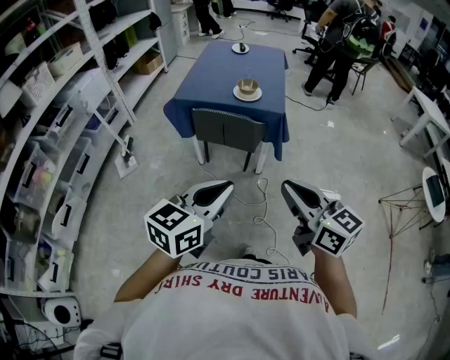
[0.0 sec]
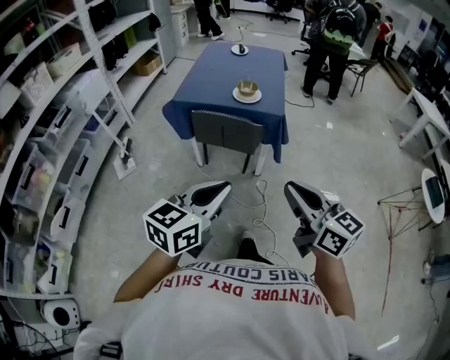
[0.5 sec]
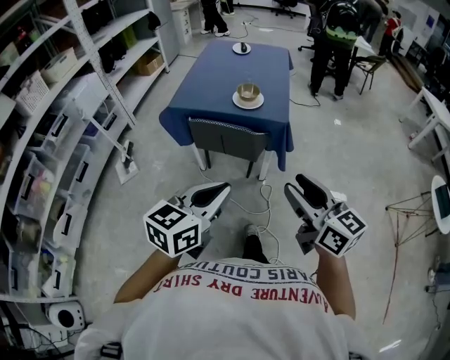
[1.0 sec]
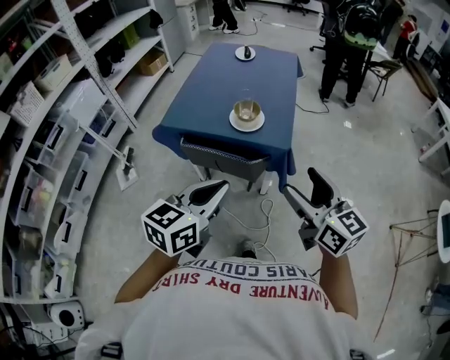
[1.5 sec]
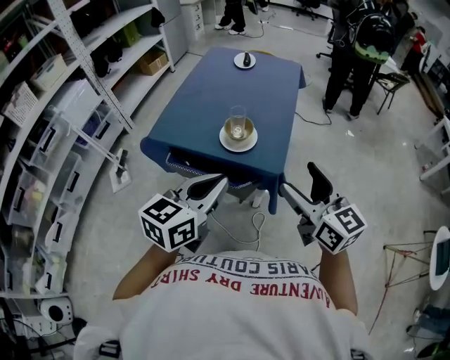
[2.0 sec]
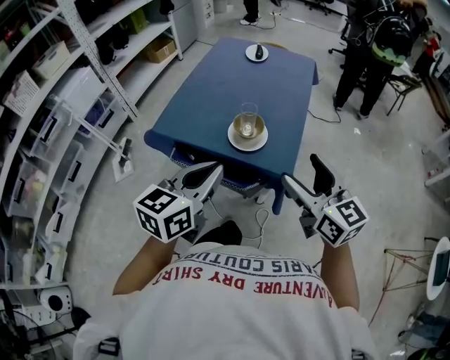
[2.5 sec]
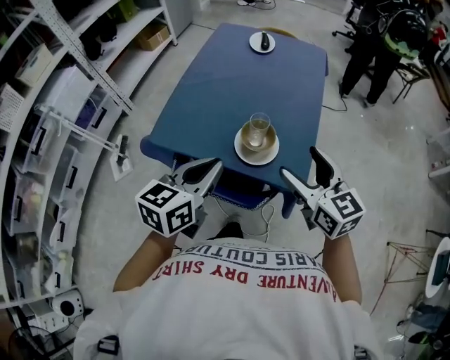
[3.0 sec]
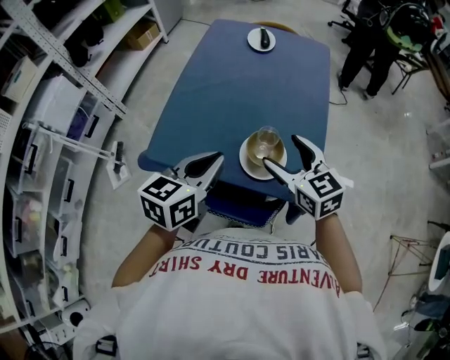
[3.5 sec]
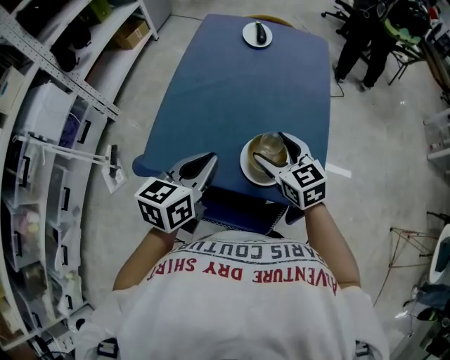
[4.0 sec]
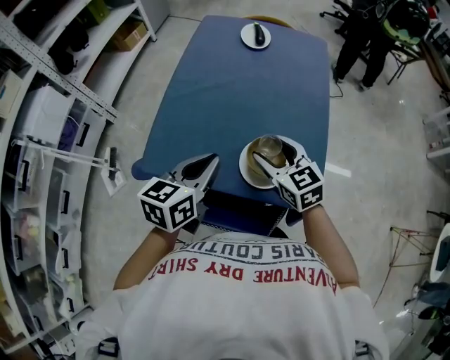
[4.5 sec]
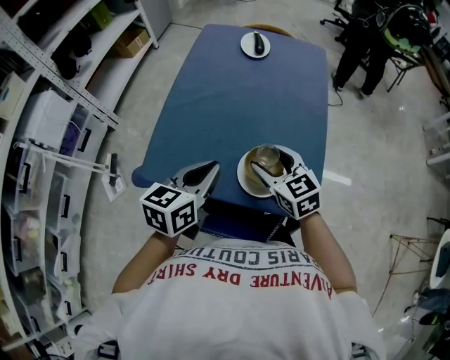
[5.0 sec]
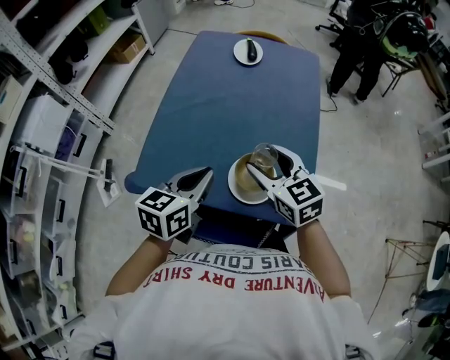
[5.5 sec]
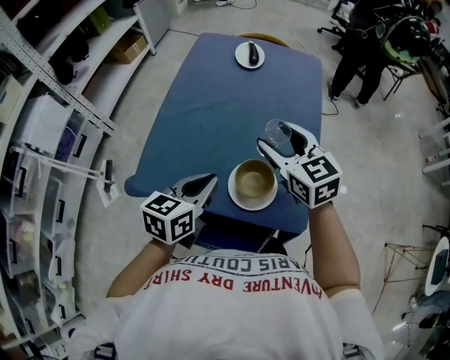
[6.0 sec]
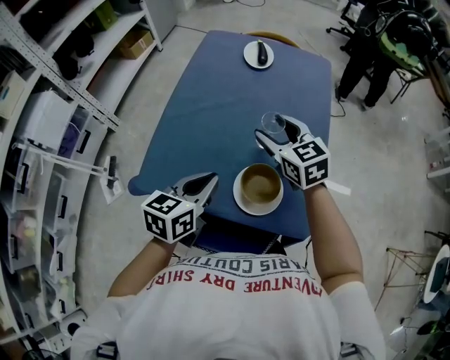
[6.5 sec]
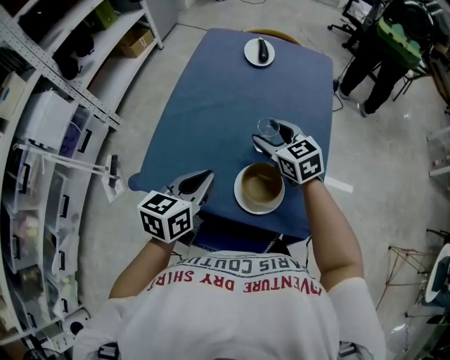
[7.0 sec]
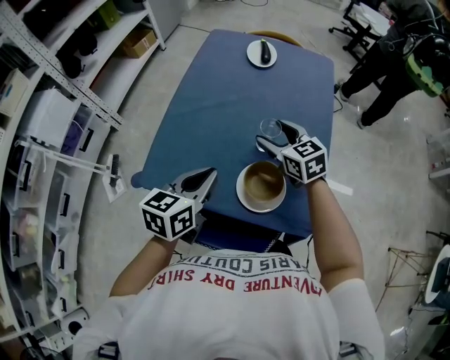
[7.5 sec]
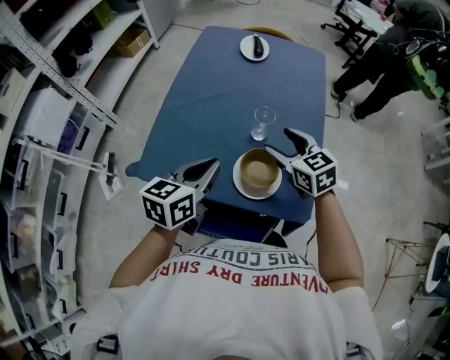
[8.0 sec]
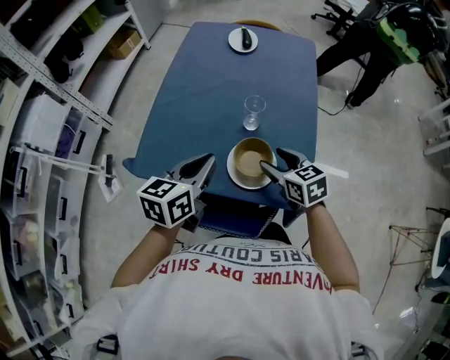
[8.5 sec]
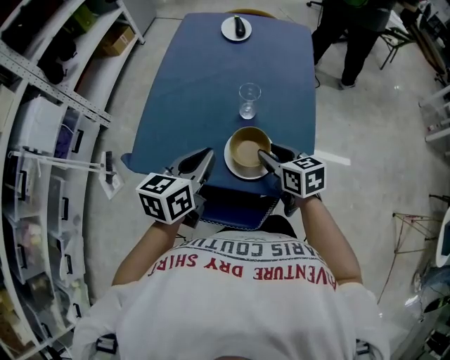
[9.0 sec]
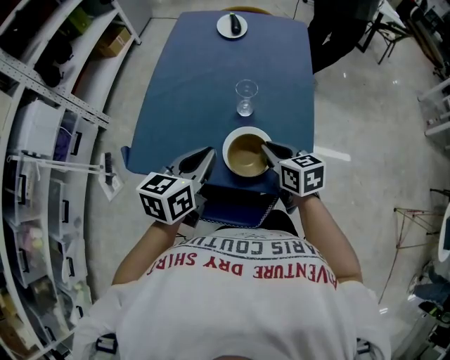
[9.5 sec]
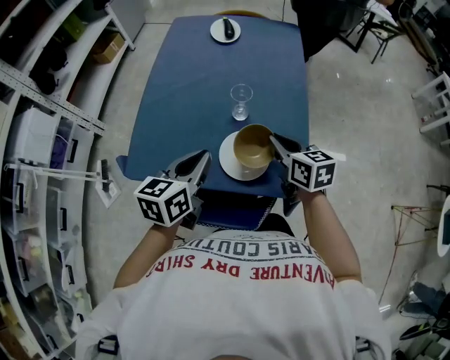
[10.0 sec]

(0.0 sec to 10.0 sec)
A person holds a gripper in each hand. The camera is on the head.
0.0 sec - 2.0 sec: Both grippers travel together forward, approximately 35 cm. The right gripper opens its fingers.
2.0 sec - 4.0 sec: The right gripper moves forward, downward and to the left, roughly 35 cm, and rotates approximately 20 degrees, while the left gripper heads forward, to the left and downward, covering about 30 cm.
4.0 sec - 6.0 sec: The right gripper travels upward and forward by roughly 10 cm.
6.0 sec - 8.0 sec: The right gripper shifts some 10 cm downward.
8.0 sec - 10.0 sec: The right gripper moves backward, some 5 cm, swivels roughly 30 degrees, and closes up.

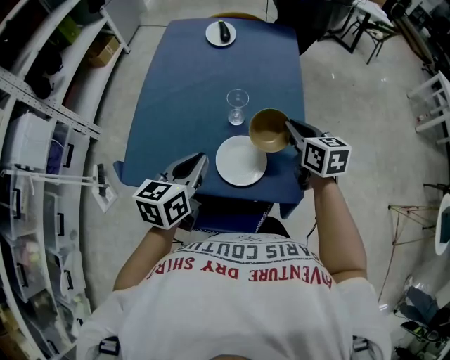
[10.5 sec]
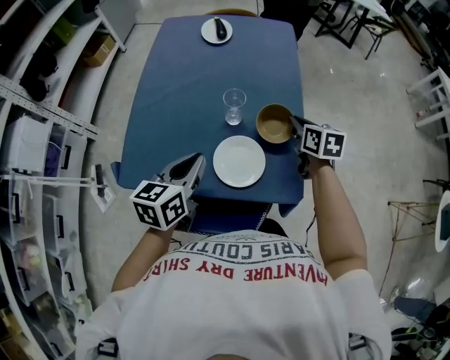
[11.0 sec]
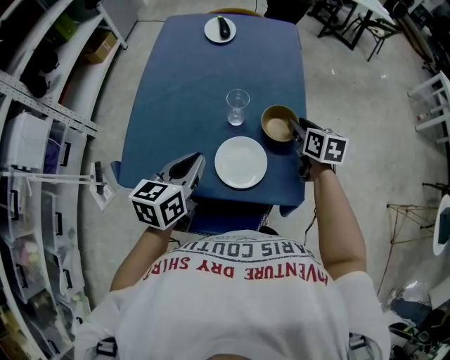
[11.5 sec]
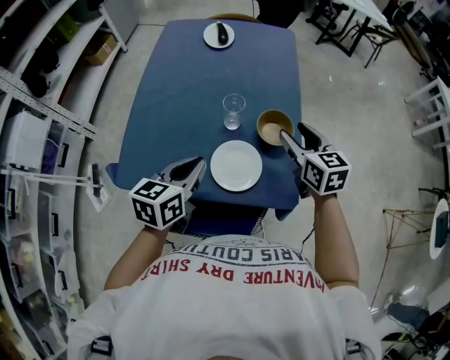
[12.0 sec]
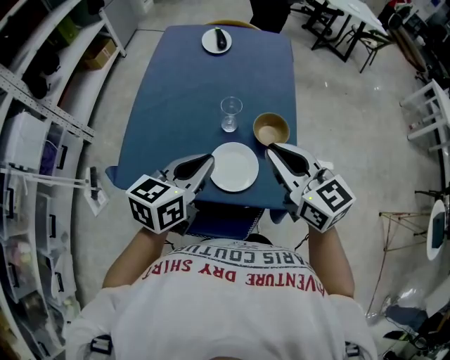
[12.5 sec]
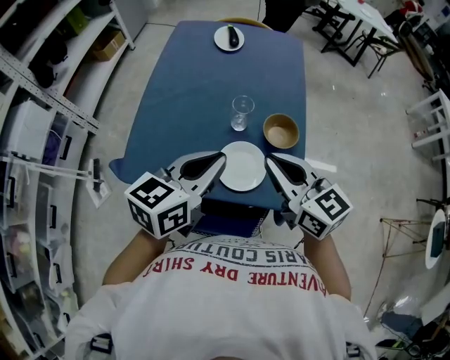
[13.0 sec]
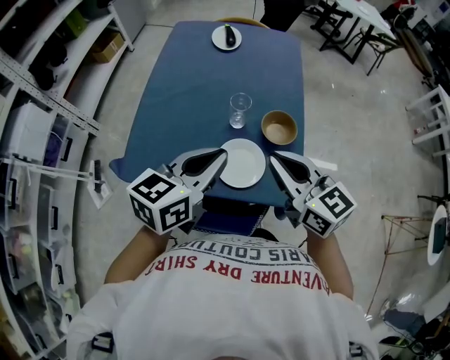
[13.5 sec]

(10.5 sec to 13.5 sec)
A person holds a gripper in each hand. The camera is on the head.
10.5 sec - 12.0 sec: The right gripper opens up.
12.0 sec - 13.5 sec: The right gripper is displaced backward, upward and to the left by roughly 15 cm, turns by some 20 degrees, and closes its fingers; the left gripper is displaced upward by approximately 10 cm.

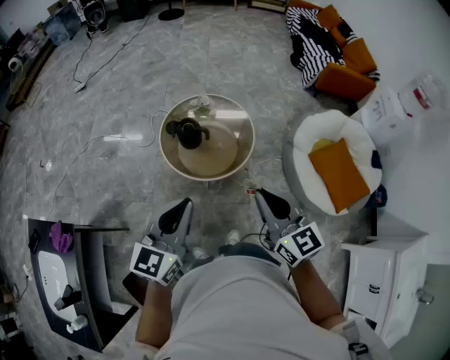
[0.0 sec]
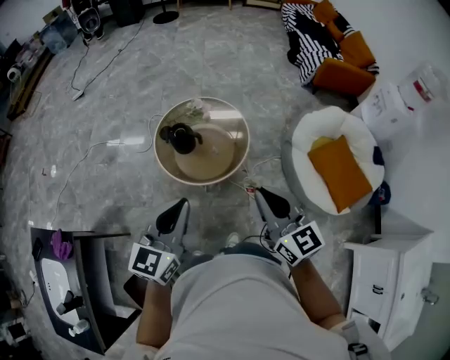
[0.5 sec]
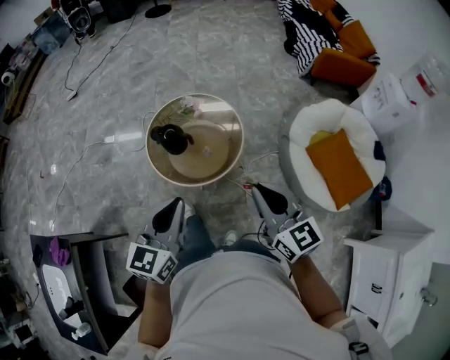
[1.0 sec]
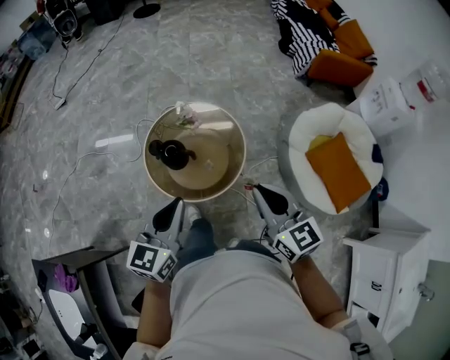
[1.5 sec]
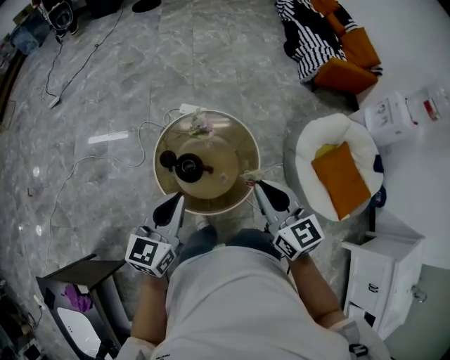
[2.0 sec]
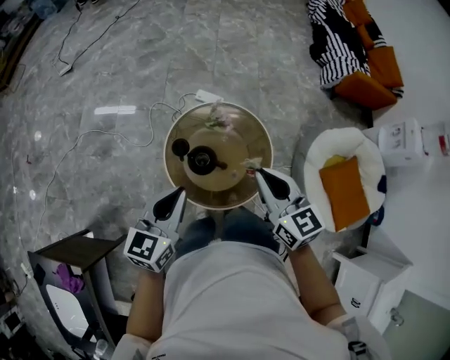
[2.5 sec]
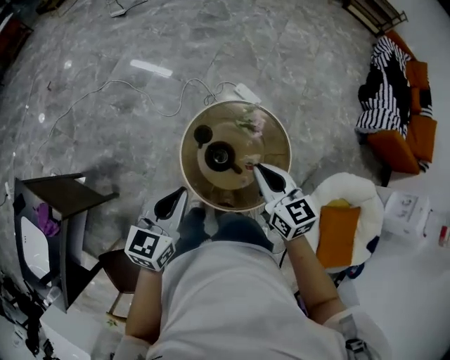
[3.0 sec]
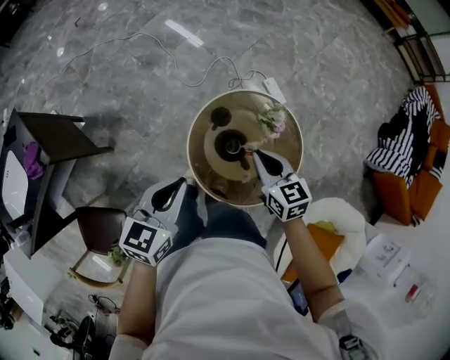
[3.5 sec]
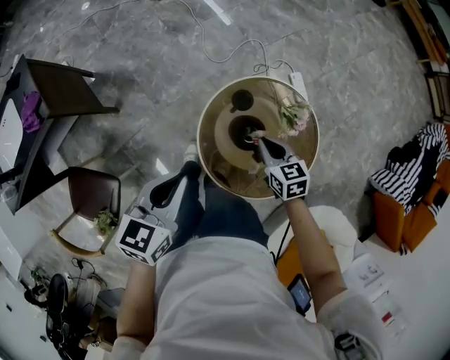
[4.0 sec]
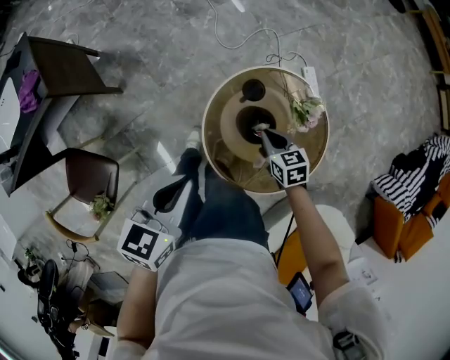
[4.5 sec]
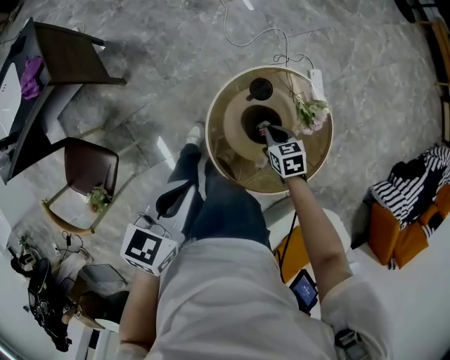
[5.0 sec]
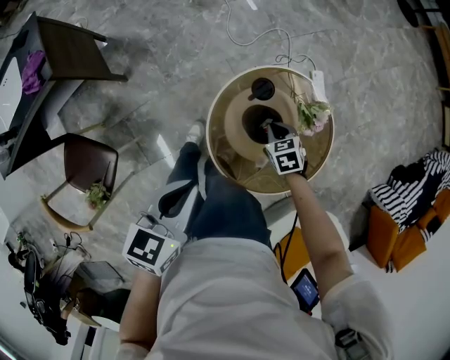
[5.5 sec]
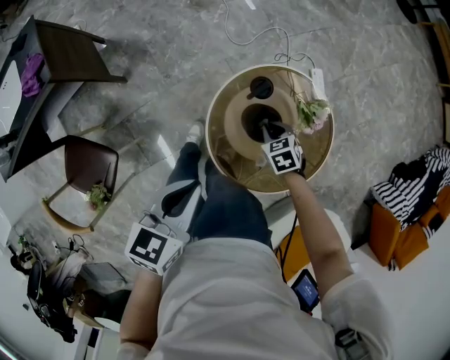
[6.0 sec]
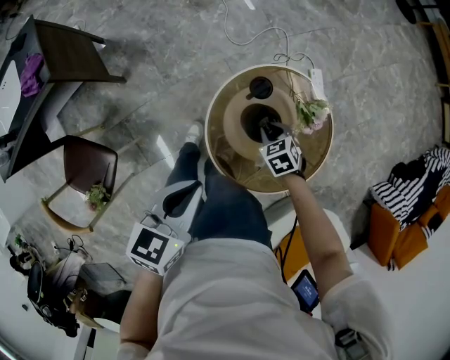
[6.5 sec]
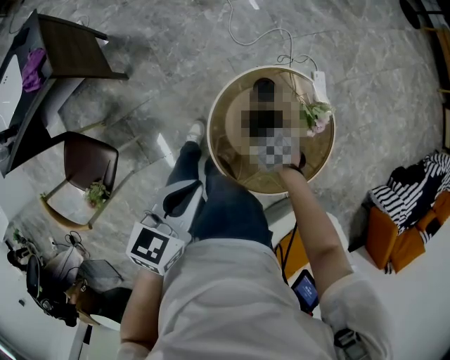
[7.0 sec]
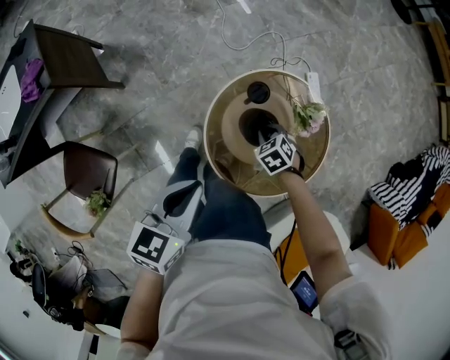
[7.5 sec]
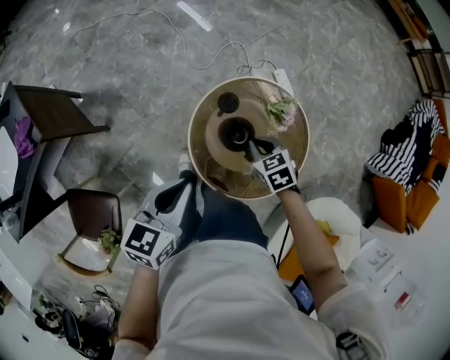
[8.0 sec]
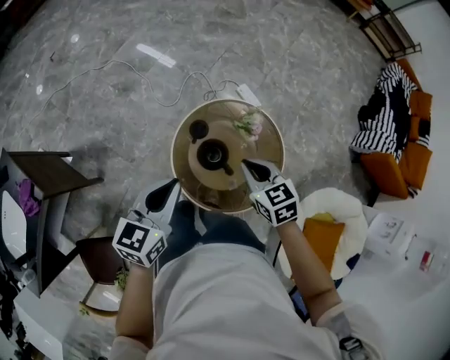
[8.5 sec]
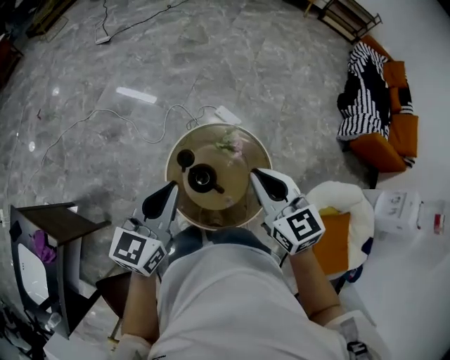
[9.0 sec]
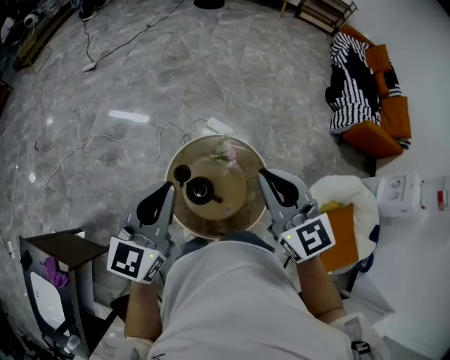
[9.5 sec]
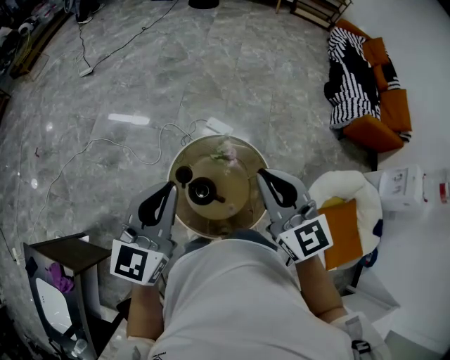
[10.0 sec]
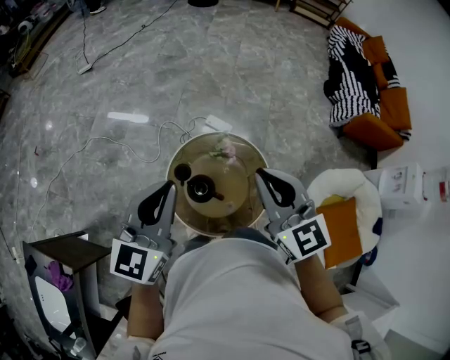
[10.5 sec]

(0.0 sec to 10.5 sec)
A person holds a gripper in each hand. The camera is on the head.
0.0 sec - 2.0 sec: Both grippers move forward, approximately 30 cm.
2.0 sec - 4.0 sec: The left gripper is displaced downward by some 10 cm, and turns by about 60 degrees; the right gripper shifts approximately 30 cm downward, and rotates approximately 60 degrees.
4.0 sec - 6.5 sec: The left gripper heads backward, covering roughly 5 cm, while the right gripper heads downward, covering some 10 cm, and turns by some 30 degrees.
6.5 sec - 8.5 sec: The right gripper goes some 25 cm upward, and swivels about 40 degrees, while the left gripper changes place by about 15 cm, and swivels roughly 30 degrees.
8.5 sec - 10.5 sec: The right gripper is displaced upward by roughly 25 cm, and tilts its fingers some 30 degrees upward. The left gripper shifts roughly 20 cm upward and forward, and turns by about 30 degrees.

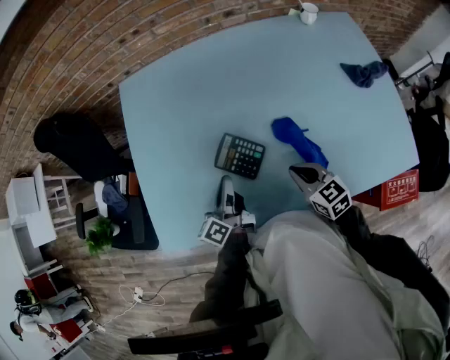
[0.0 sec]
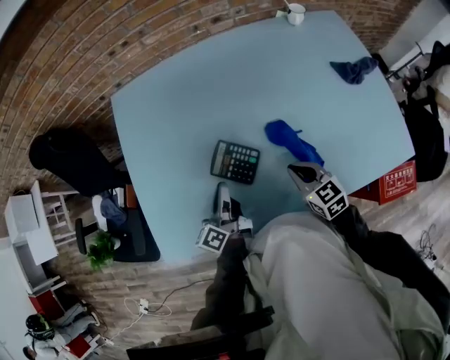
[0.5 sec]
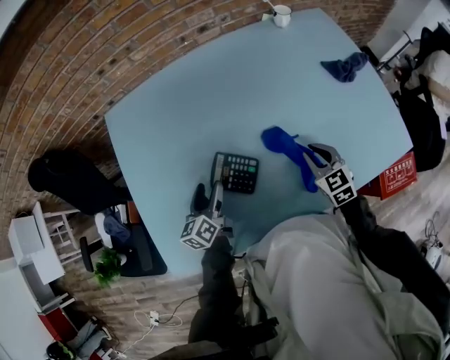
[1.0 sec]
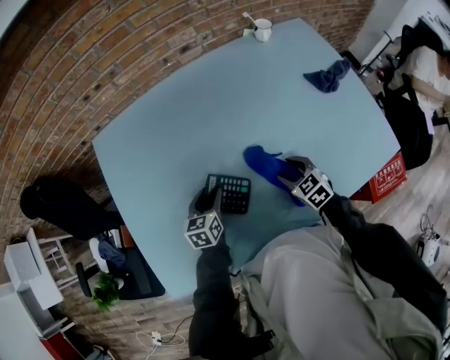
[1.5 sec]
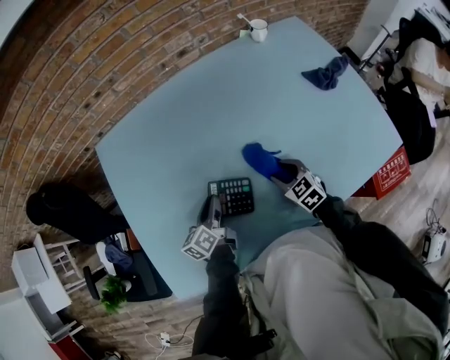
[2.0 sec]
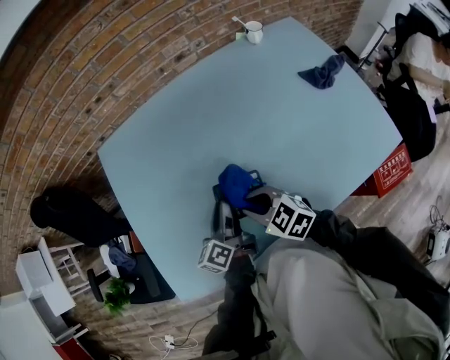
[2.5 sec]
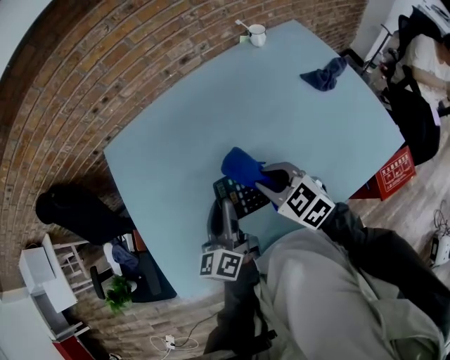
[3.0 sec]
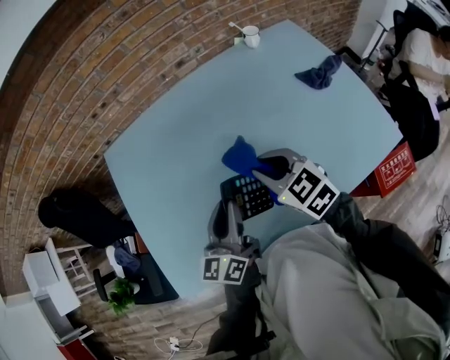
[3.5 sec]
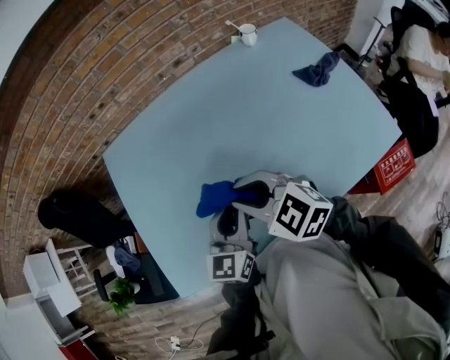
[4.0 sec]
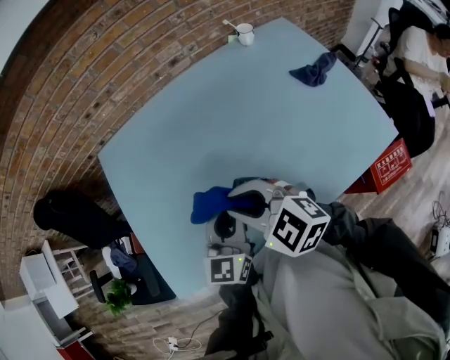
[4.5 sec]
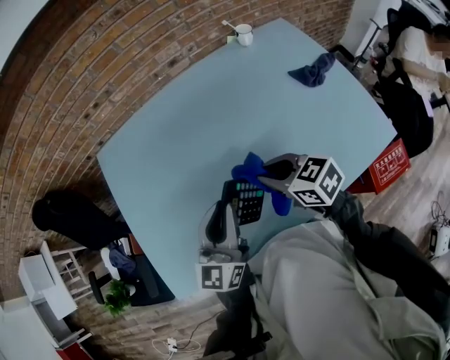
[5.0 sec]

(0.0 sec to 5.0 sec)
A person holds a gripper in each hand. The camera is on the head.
0.0 sec - 2.5 sec: The right gripper moves to the left, some 10 cm, and opens, then closes once more; the left gripper opens and closes again.
2.5 sec - 5.0 sec: The right gripper is displaced to the right and upward by approximately 10 cm, while the left gripper travels upward by some 15 cm, and rotates around the line of its fingers by about 40 degrees, clockwise from behind.
